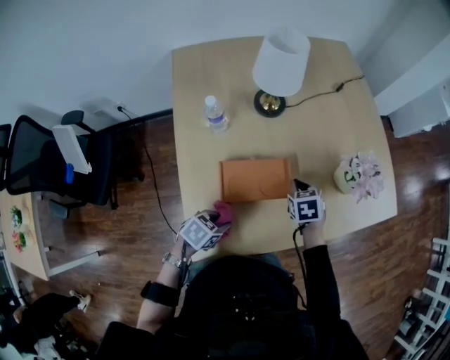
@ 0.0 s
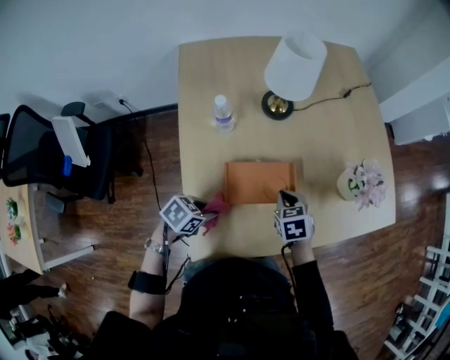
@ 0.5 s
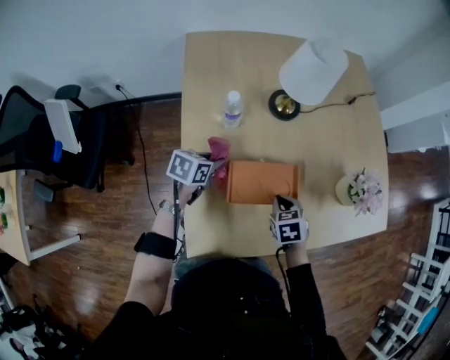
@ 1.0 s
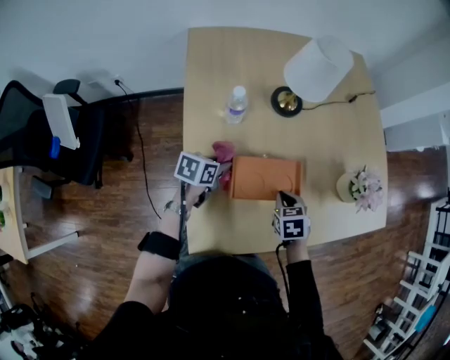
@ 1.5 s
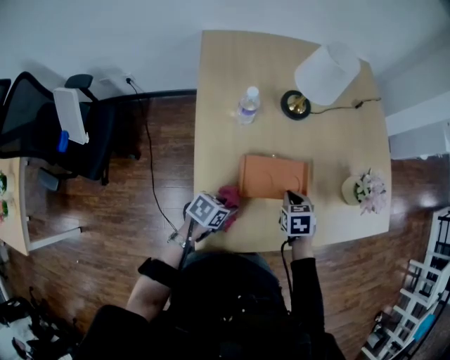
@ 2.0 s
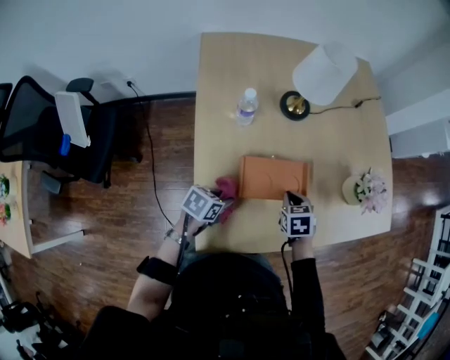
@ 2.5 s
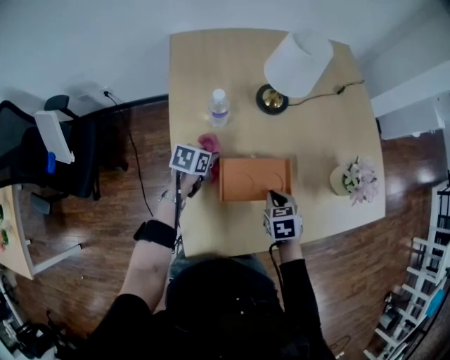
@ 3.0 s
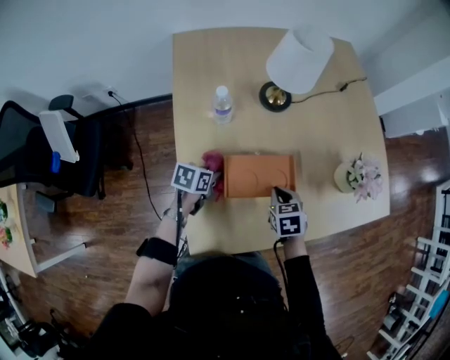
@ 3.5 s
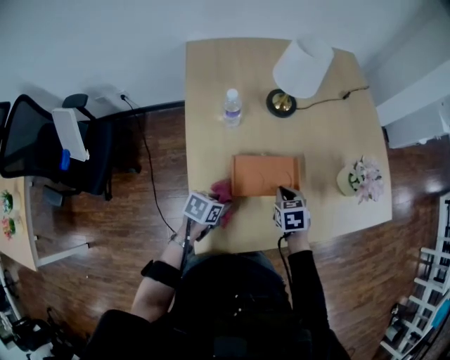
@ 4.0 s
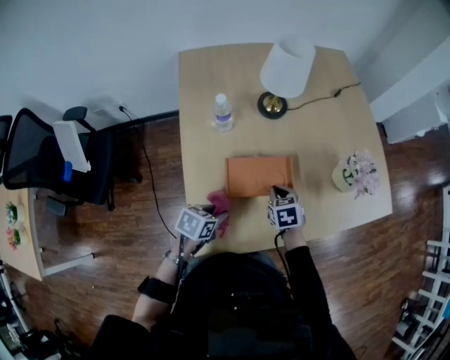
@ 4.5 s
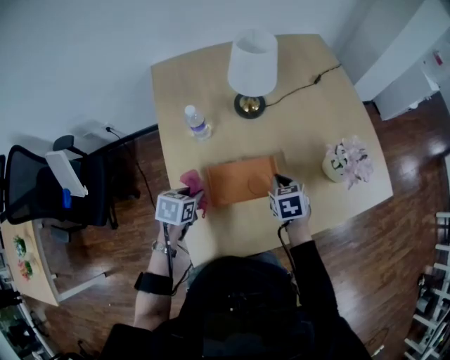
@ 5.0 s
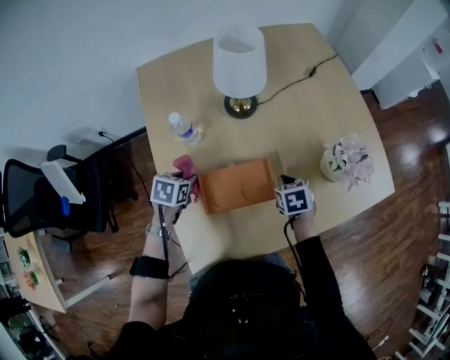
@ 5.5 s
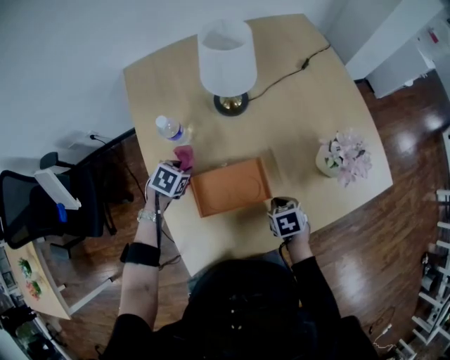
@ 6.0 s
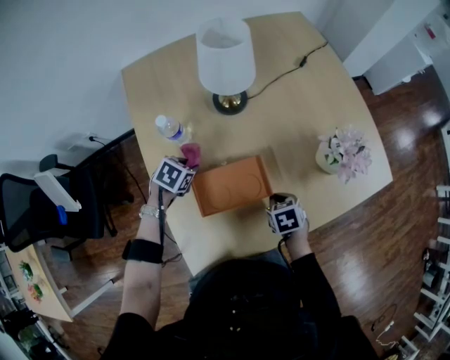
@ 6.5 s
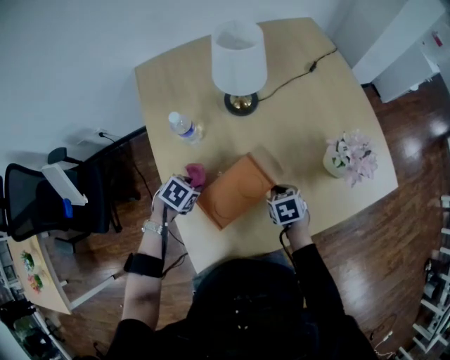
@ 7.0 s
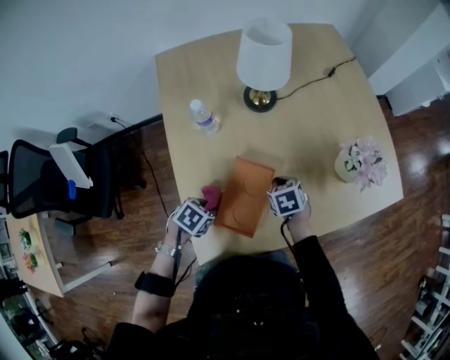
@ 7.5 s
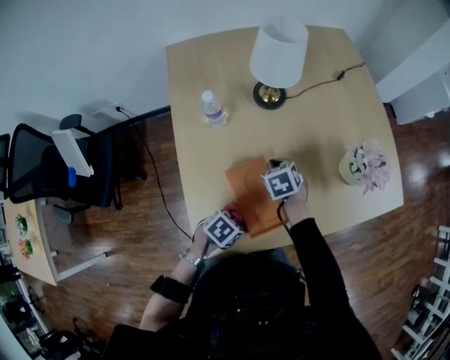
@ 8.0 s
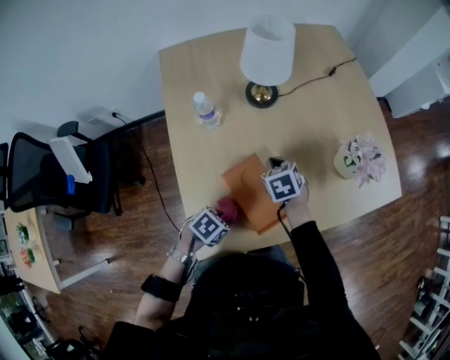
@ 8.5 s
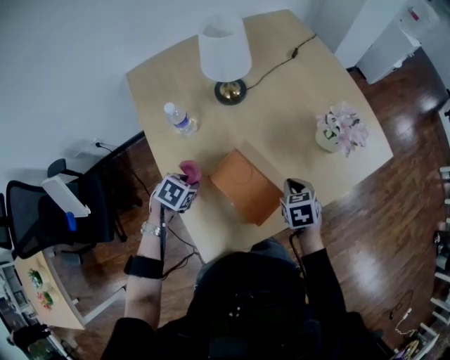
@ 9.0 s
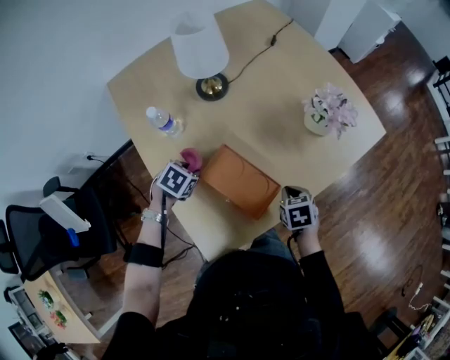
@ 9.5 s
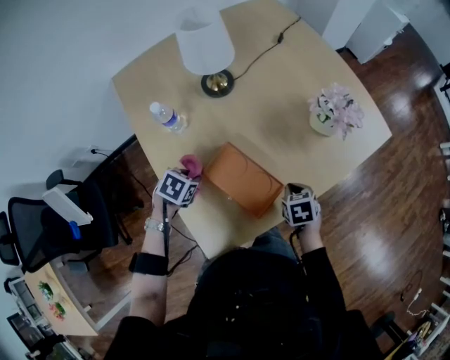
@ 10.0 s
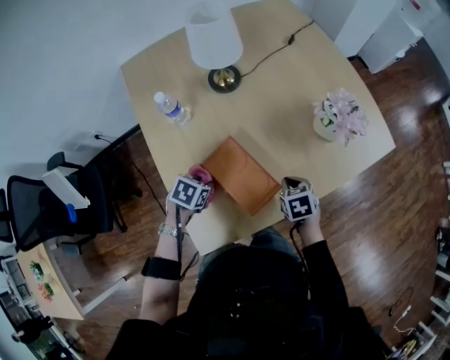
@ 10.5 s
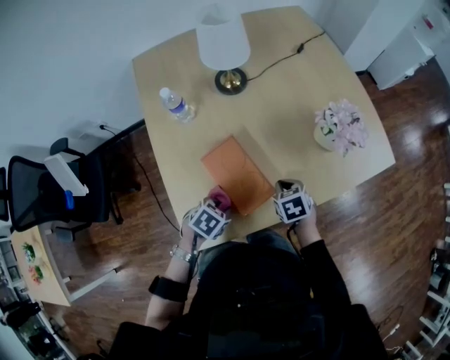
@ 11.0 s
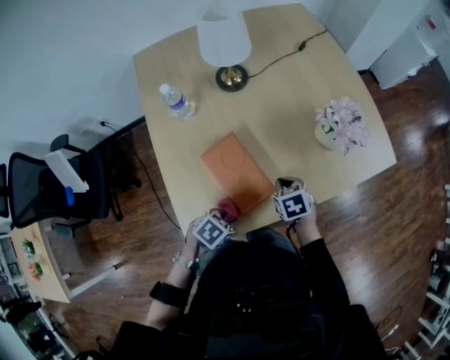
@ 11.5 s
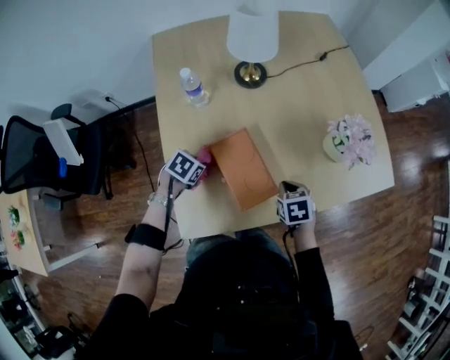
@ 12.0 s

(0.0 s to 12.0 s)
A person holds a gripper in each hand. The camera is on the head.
0.0 s - 2.0 s: The right gripper goes approximately 10 cm backward and to the left. Meanwhile the left gripper travels forward and back again, some 15 cm each way.
2.0 s - 4.0 s: The left gripper reaches approximately 15 cm forward, then returns.
4.0 s - 6.0 s: The right gripper heads to the right, covering some 10 cm; the left gripper shifts approximately 20 cm forward and to the left, and changes its angle by approximately 30 degrees.
6.0 s - 8.0 s: The left gripper goes approximately 30 cm backward and to the right, and swivels approximately 20 degrees; the right gripper shifts some 15 cm to the left and forward.
8.0 s - 10.0 s: The left gripper shifts some 20 cm to the left and forward, while the right gripper shifts some 20 cm to the right and backward, and changes its angle by approximately 30 degrees.
10.0 s - 12.0 s: The left gripper moves approximately 20 cm to the right and comes back.

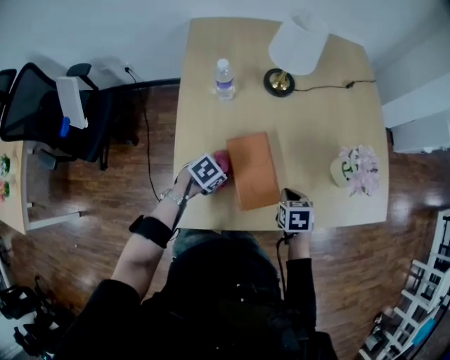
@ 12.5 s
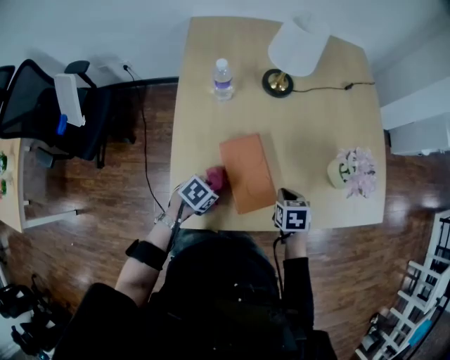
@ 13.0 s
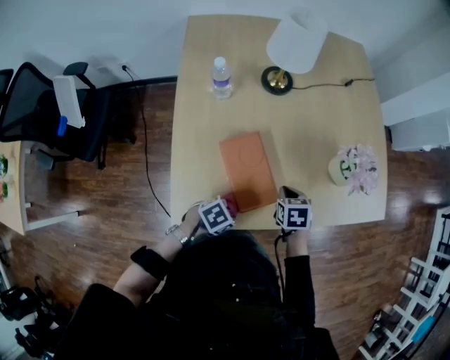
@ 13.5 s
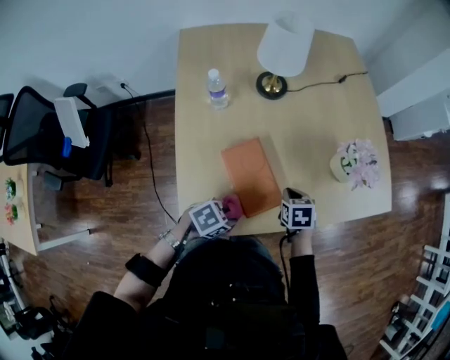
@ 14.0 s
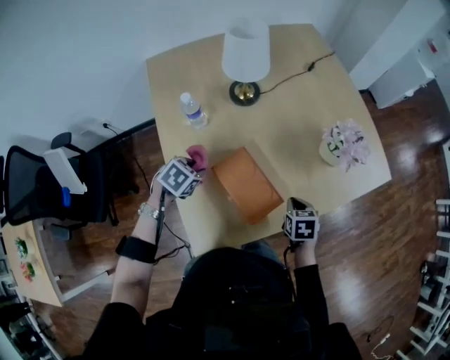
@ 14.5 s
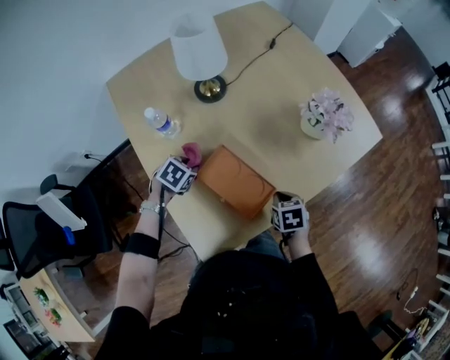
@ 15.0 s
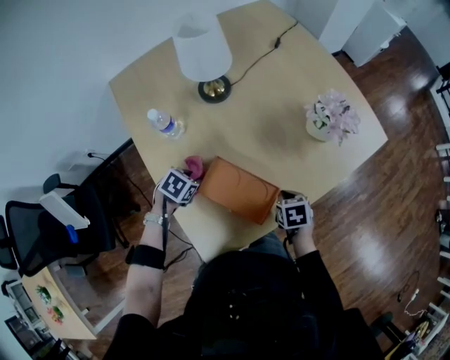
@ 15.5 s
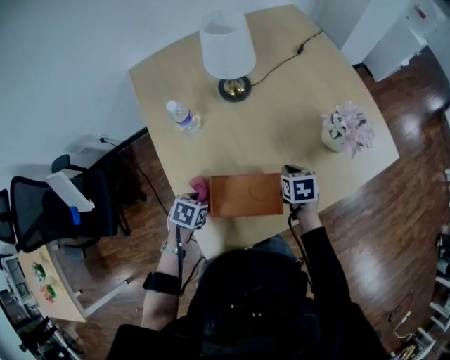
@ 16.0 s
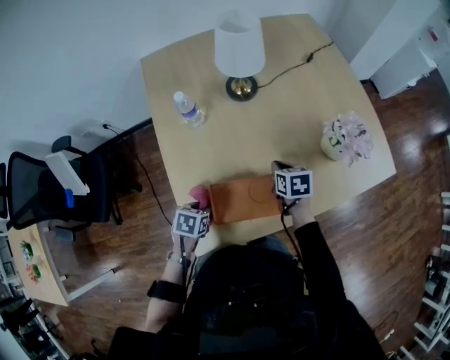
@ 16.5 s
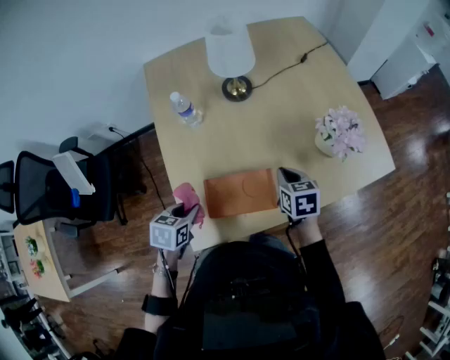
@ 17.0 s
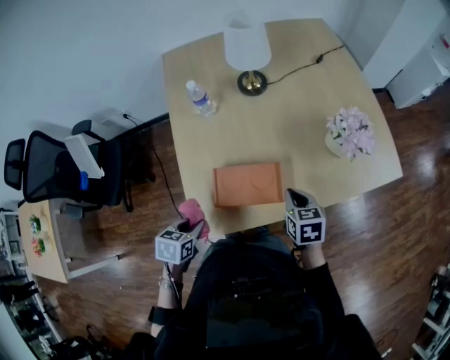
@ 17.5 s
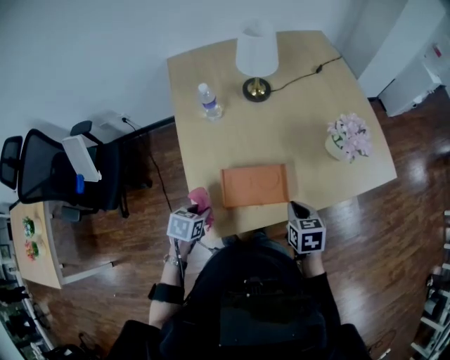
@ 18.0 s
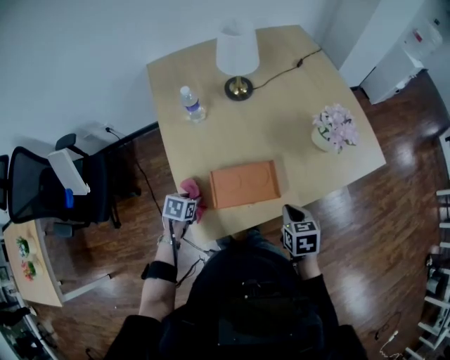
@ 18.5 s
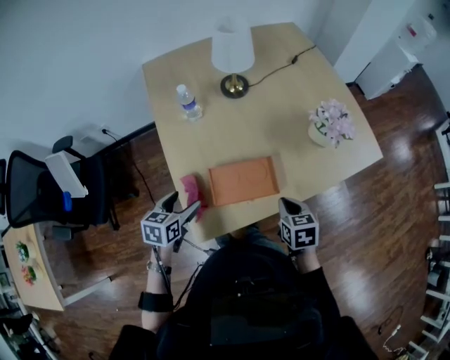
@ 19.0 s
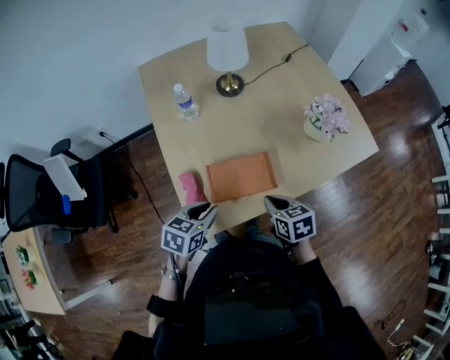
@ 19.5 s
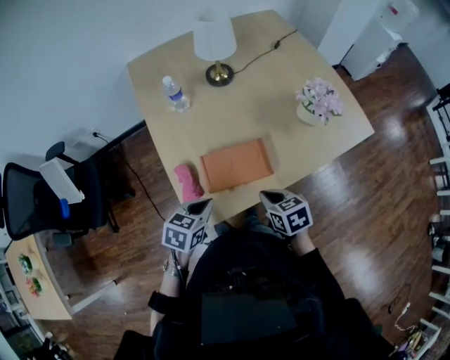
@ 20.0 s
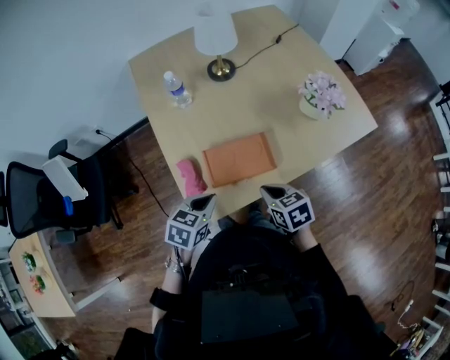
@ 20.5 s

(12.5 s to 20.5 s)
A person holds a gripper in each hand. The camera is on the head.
12.5 s - 14.5 s: The left gripper heads to the left and upward, covering approximately 15 cm.
14.5 s - 16.5 s: The left gripper moves about 15 cm, and rotates approximately 30 degrees, while the right gripper shifts by roughly 15 cm.
16.5 s - 18.5 s: The left gripper reaches approximately 10 cm upward, then returns. The right gripper moves backward, about 20 cm.
18.5 s - 20.5 s: The left gripper moves upward, to the right and backward, about 20 cm, changes its angle by some 20 degrees, and opens, then closes again. Meanwhile the right gripper moves to the left, approximately 5 cm.

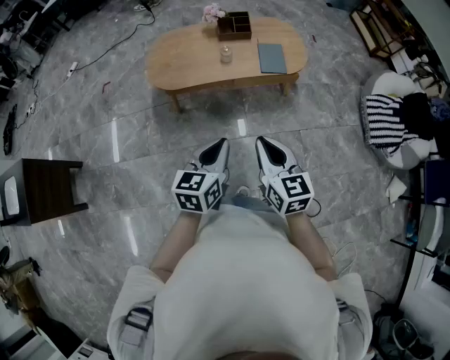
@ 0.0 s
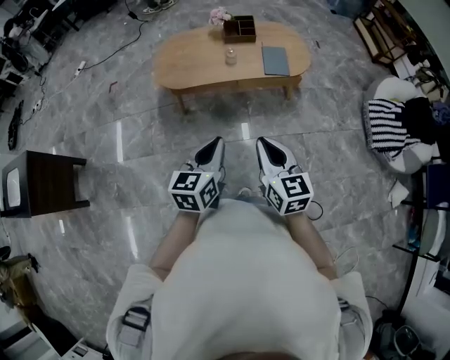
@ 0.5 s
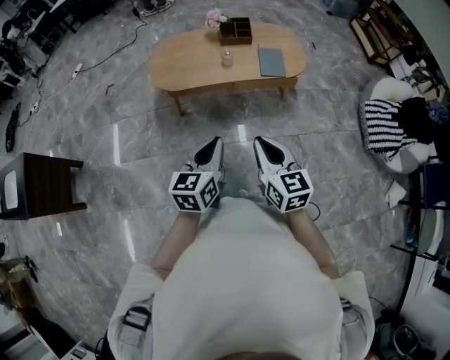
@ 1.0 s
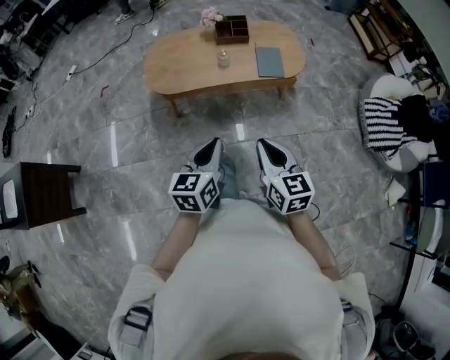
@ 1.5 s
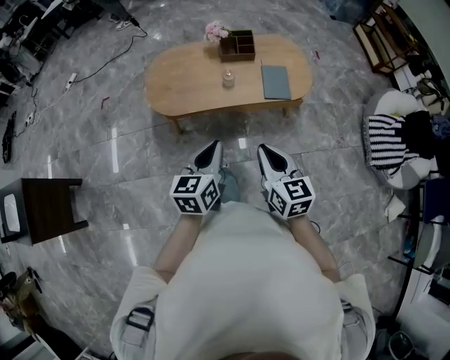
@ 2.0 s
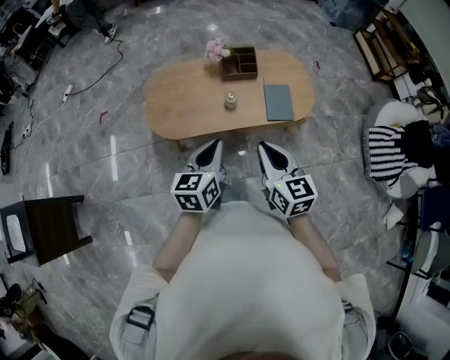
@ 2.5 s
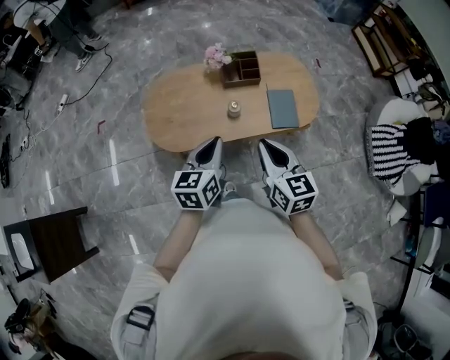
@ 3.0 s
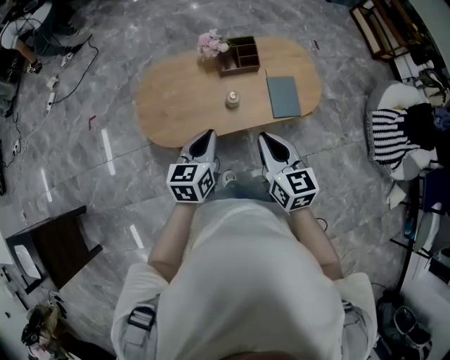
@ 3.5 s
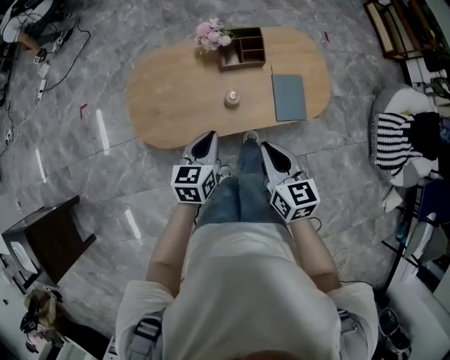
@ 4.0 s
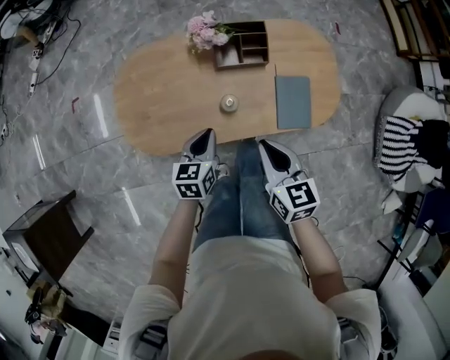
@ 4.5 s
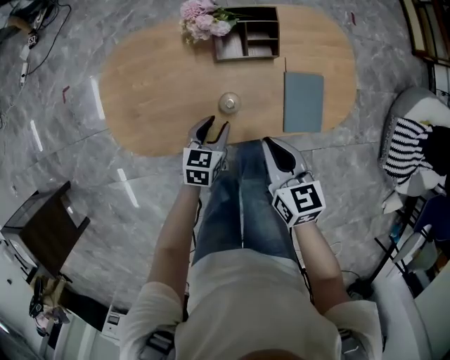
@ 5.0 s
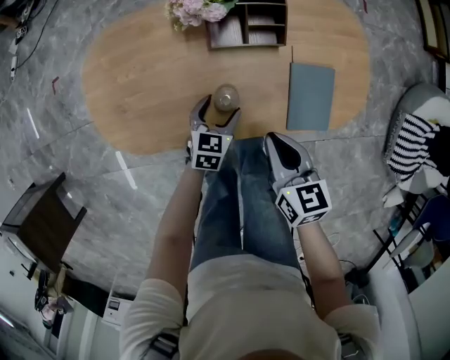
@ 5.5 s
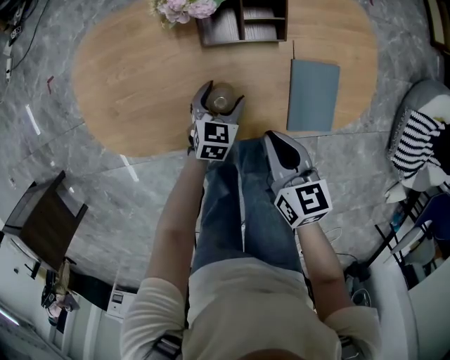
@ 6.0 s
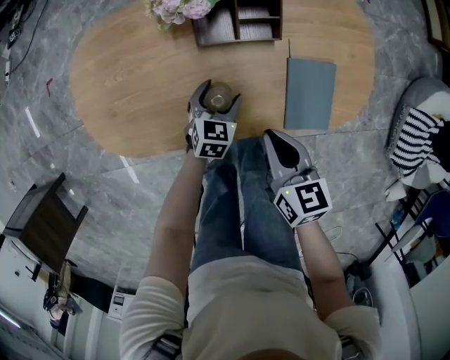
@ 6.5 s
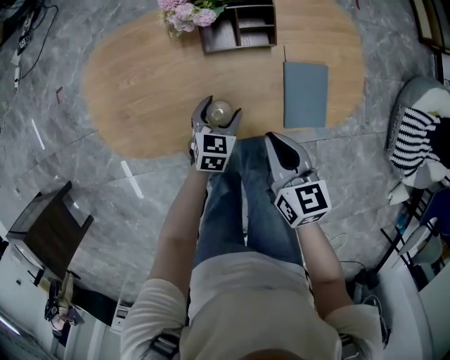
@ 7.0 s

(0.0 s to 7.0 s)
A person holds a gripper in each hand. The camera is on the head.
0.0 s - 2.0 s: The grippers both shift forward by approximately 10 cm.
2.0 s - 3.5 s: Both grippers move forward, roughly 25 cm.
3.5 s - 5.0 s: Both grippers travel together downward and forward, some 30 cm. The left gripper opens its fingers.
5.0 s - 7.0 s: The left gripper travels downward by some 5 cm, and opens up.
